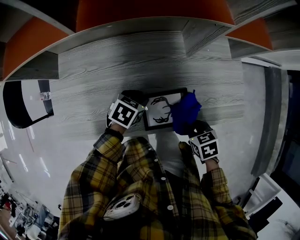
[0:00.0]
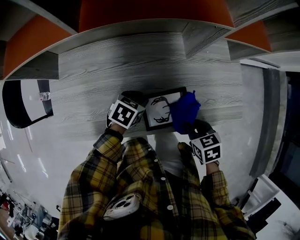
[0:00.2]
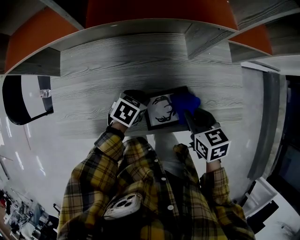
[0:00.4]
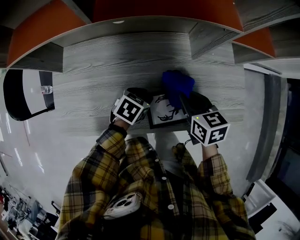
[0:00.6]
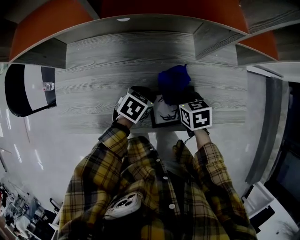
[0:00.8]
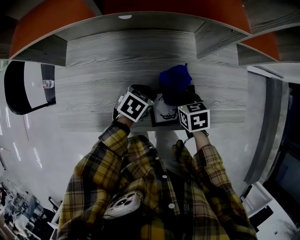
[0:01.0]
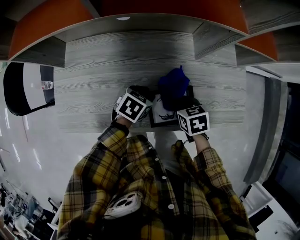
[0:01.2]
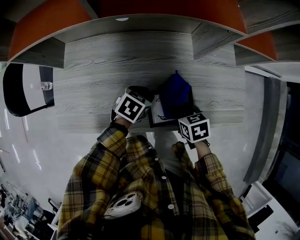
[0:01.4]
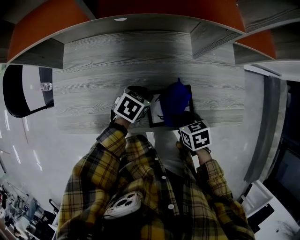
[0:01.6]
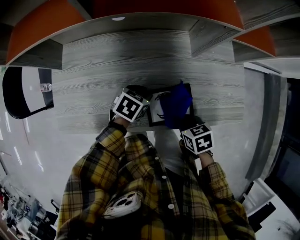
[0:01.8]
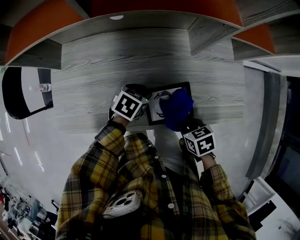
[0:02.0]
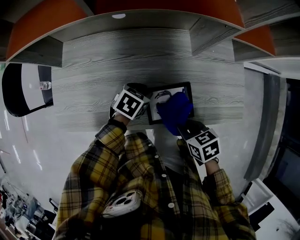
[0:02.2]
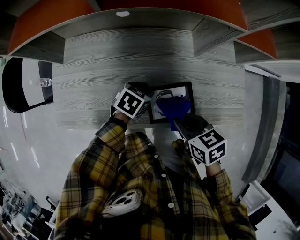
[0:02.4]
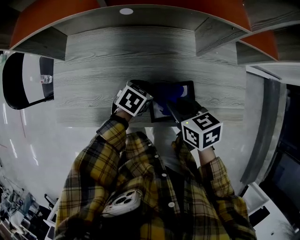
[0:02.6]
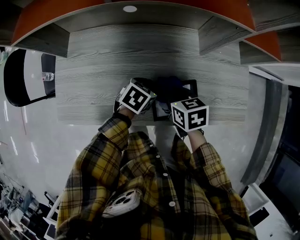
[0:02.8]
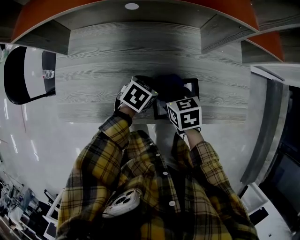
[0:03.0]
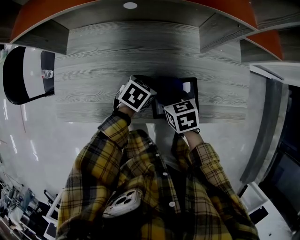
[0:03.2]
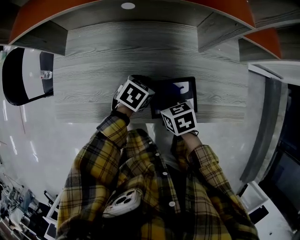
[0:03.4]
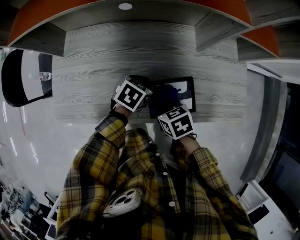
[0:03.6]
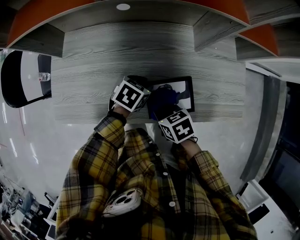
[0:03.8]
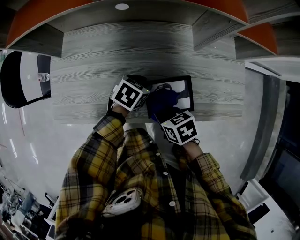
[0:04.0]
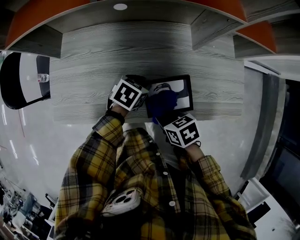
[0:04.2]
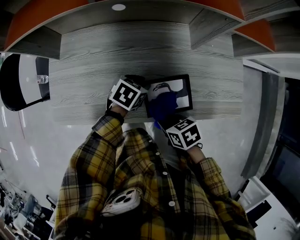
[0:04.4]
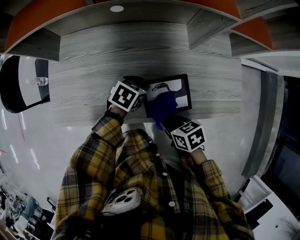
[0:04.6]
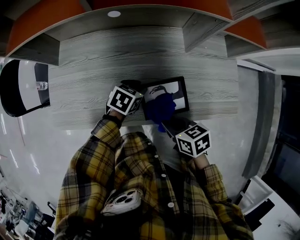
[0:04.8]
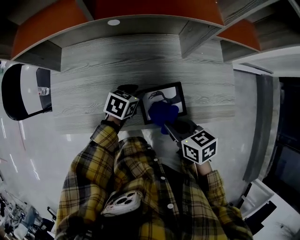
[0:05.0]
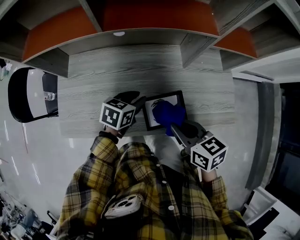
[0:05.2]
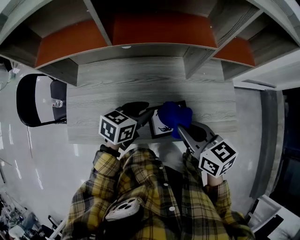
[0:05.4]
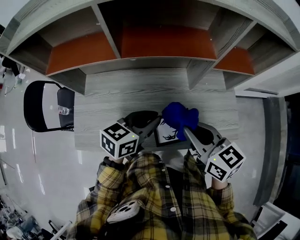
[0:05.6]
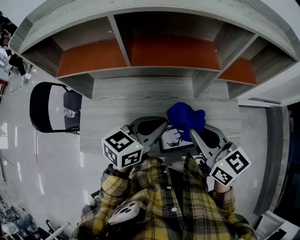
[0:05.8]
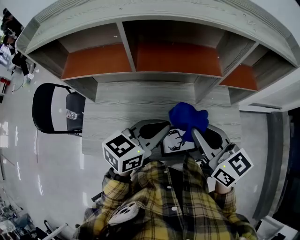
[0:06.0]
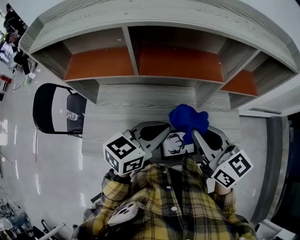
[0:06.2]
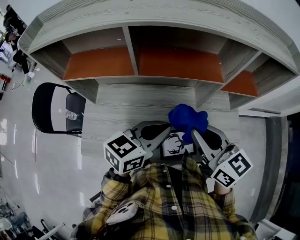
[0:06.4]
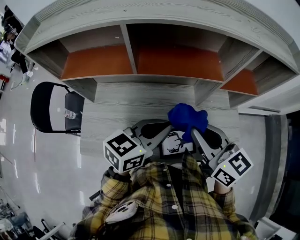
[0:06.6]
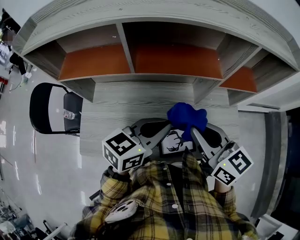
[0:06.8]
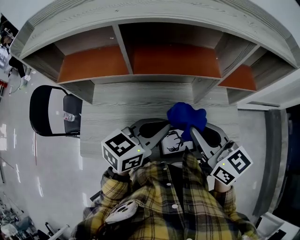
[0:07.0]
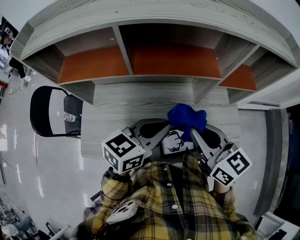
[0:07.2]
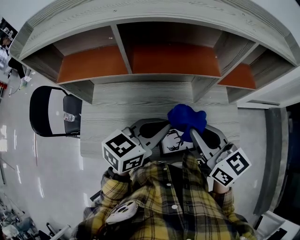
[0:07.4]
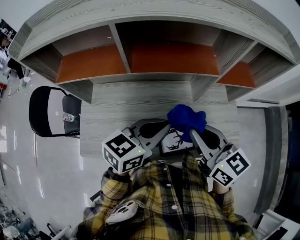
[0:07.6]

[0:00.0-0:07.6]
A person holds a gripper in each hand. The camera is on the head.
0:00.0 to 0:01.6: The right gripper heads to the left, covering some 5 cm, and moves some 10 cm forward and comes back.
0:01.6 to 0:03.0: The right gripper travels upward and back again, some 10 cm each way.
0:03.0 to 0:04.6: The right gripper changes place by roughly 15 cm, and changes its angle by approximately 20 degrees.
0:04.6 to 0:06.0: Both grippers move upward, approximately 30 cm. The right gripper tilts its fingers some 40 degrees upward, while the left gripper tips its fingers upward by some 40 degrees, and closes up.
0:06.0 to 0:07.6: The grippers make only small movements.

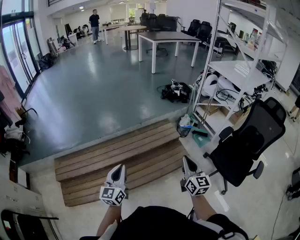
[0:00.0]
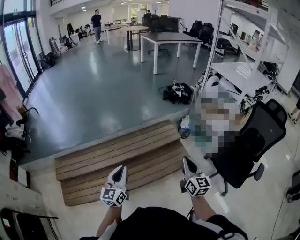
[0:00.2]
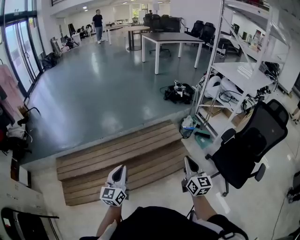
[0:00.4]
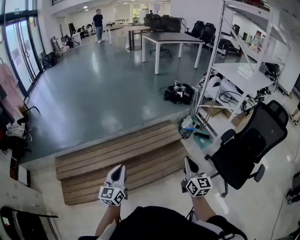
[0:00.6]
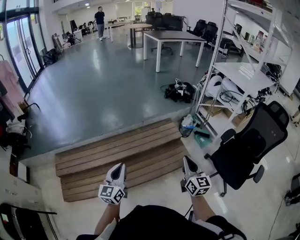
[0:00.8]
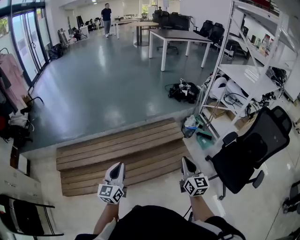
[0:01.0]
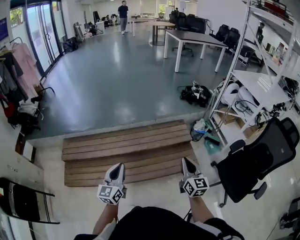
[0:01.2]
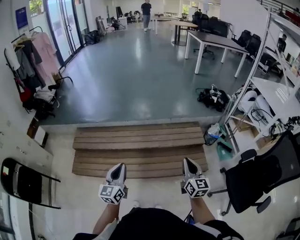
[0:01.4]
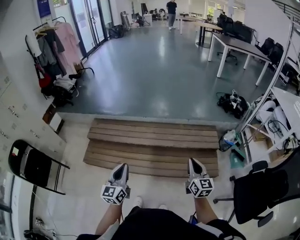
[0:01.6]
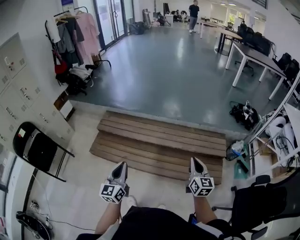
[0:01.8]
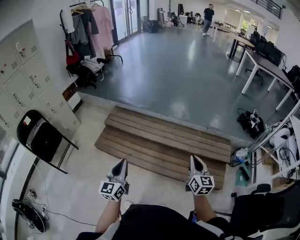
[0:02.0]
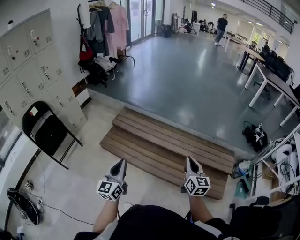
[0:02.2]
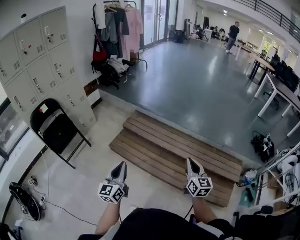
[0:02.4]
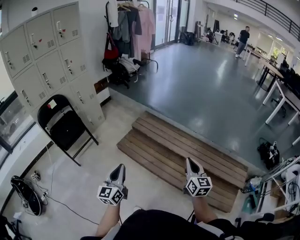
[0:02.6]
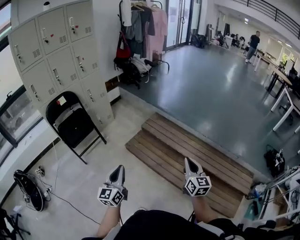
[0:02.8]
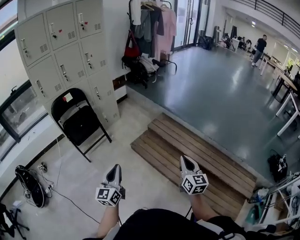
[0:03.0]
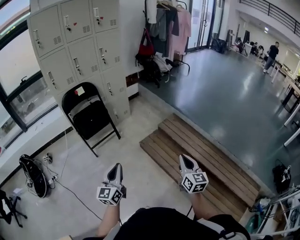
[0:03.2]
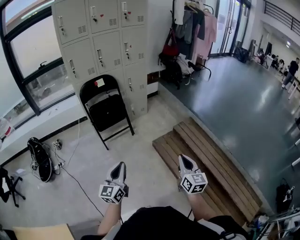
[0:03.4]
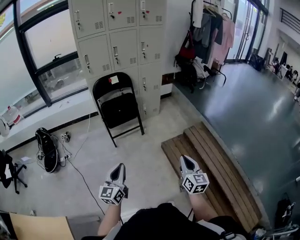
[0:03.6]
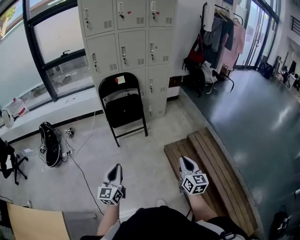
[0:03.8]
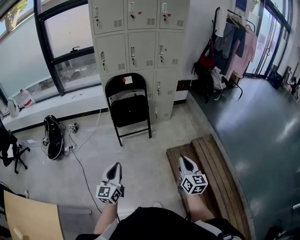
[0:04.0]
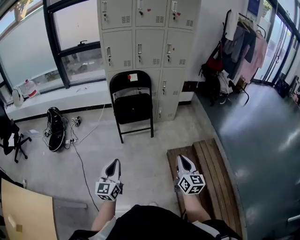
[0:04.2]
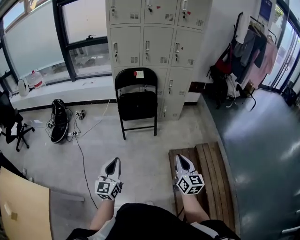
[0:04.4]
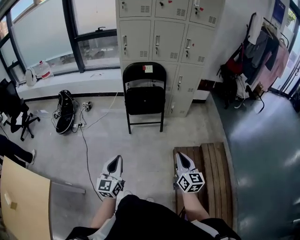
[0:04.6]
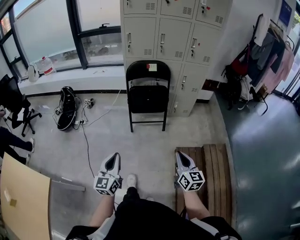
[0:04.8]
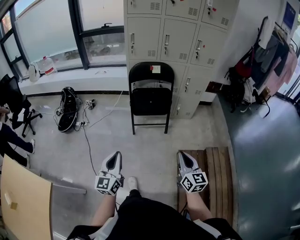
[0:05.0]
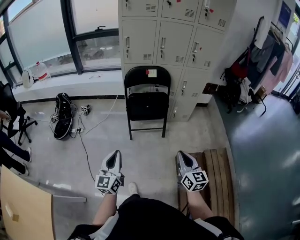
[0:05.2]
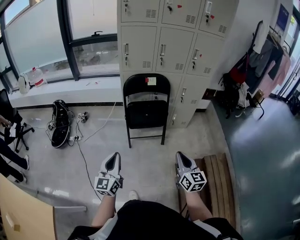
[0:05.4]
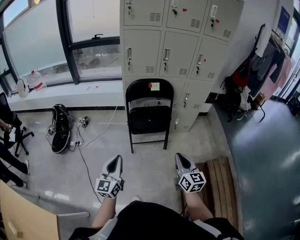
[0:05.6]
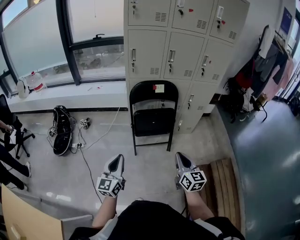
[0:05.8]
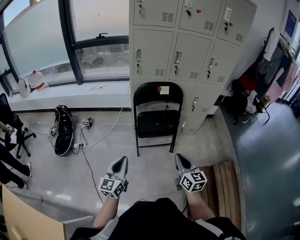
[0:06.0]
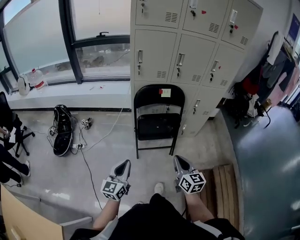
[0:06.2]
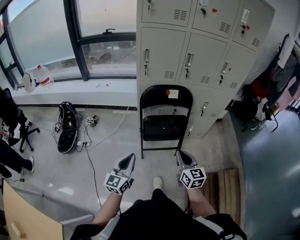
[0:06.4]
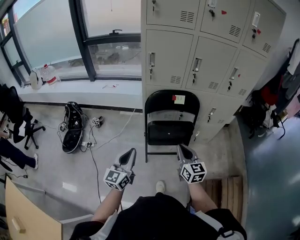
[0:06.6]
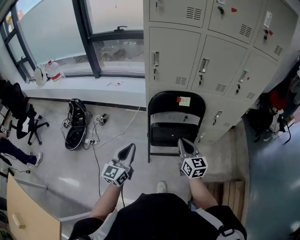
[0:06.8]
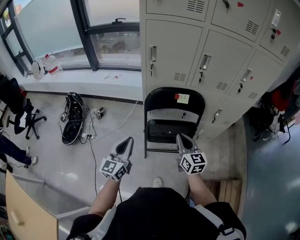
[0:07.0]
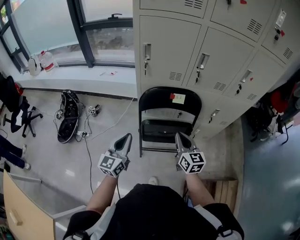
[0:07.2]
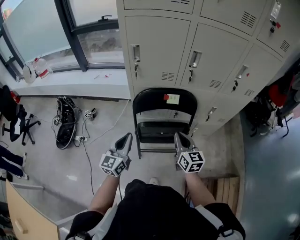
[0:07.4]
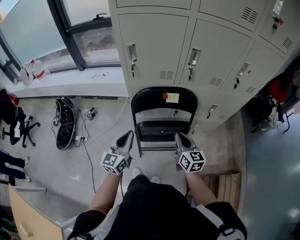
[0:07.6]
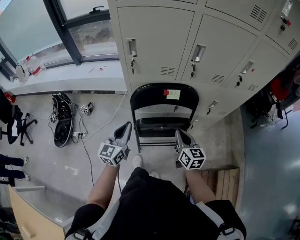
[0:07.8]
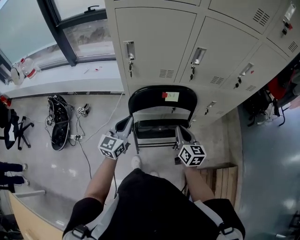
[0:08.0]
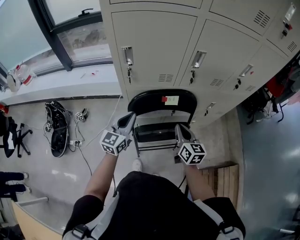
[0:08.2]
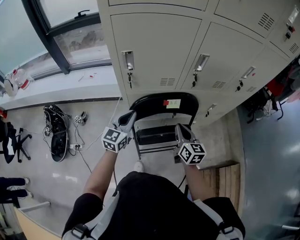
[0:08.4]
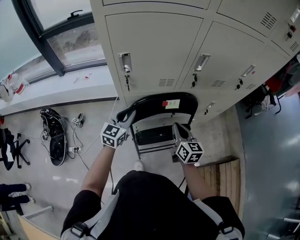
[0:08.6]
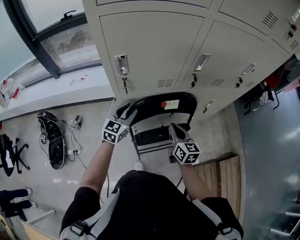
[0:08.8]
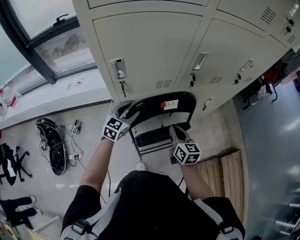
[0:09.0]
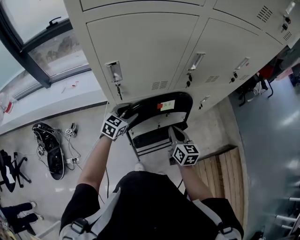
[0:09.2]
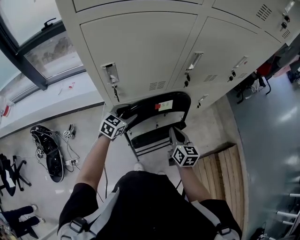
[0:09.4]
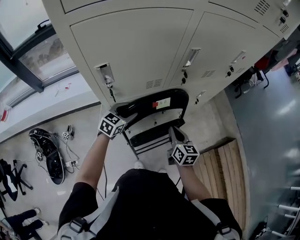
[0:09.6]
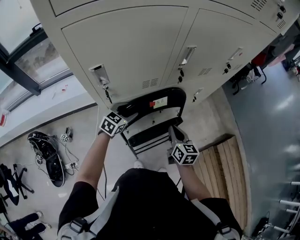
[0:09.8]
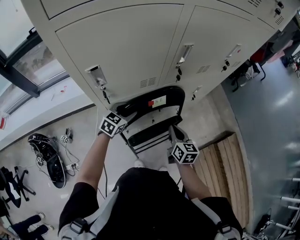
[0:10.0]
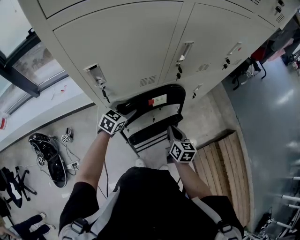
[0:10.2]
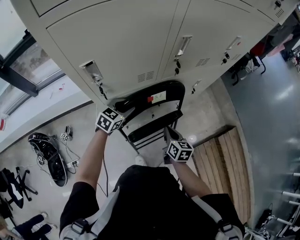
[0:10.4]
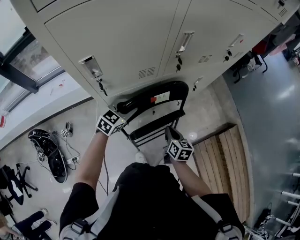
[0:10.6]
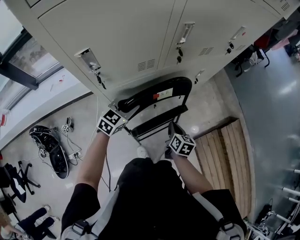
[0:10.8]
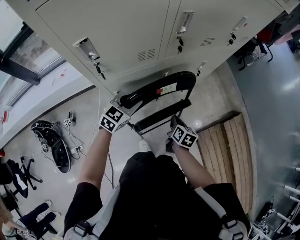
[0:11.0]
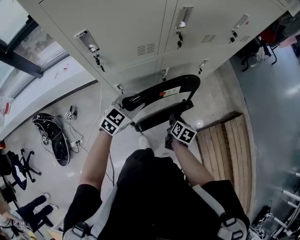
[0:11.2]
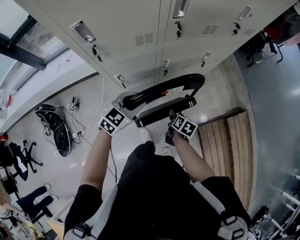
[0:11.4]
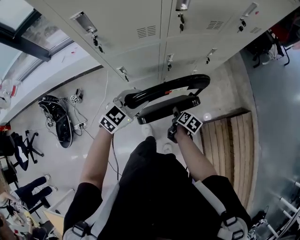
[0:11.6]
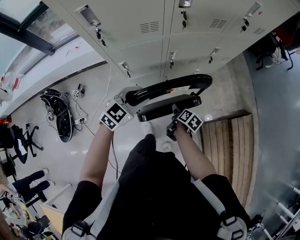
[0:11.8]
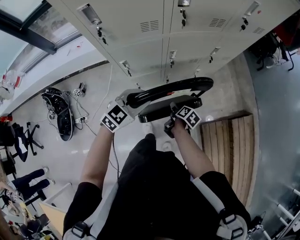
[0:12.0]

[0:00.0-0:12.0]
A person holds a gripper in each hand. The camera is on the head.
0:00.0 to 0:01.6: The right gripper ends up roughly 10 cm from where it was, and swivels approximately 30 degrees. The left gripper moves approximately 15 cm, and swivels roughly 30 degrees.
0:01.6 to 0:03.0: The two grippers travel together, approximately 50 cm. The left gripper turns by approximately 40 degrees. Meanwhile the right gripper rotates approximately 40 degrees.
0:03.0 to 0:04.4: The left gripper shifts by some 15 cm, and turns by approximately 40 degrees. Meanwhile the right gripper shifts by approximately 30 cm, and rotates about 40 degrees.
0:04.4 to 0:06.0: The two grippers go approximately 30 cm forward and to the left.
0:06.0 to 0:07.6: The two grippers go roughly 35 cm forward.
0:07.6 to 0:09.0: The right gripper goes some 10 cm forward and to the left; the left gripper travels forward by some 25 cm, turns by approximately 40 degrees, and opens up.
0:09.0 to 0:10.4: The right gripper goes approximately 10 cm downward. Meanwhile the left gripper shifts by roughly 5 cm, and changes its angle by about 20 degrees.
0:10.4 to 0:12.0: The left gripper travels backward and to the right by approximately 20 cm. Meanwhile the right gripper is displaced downward, to the right and backward by roughly 20 cm, changes its angle by approximately 40 degrees, and opens up.

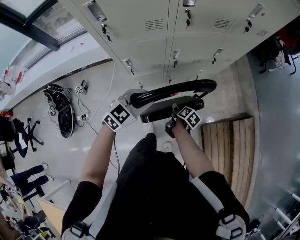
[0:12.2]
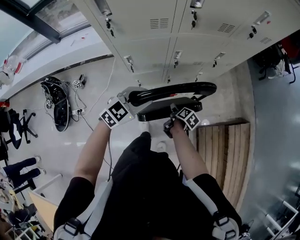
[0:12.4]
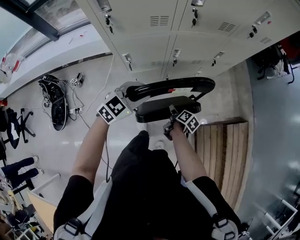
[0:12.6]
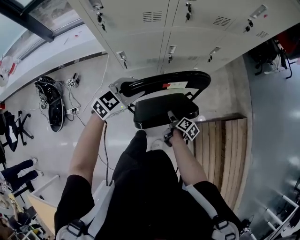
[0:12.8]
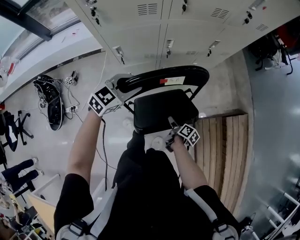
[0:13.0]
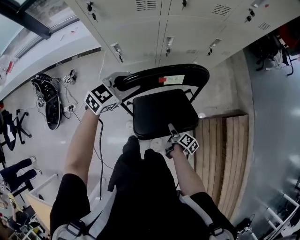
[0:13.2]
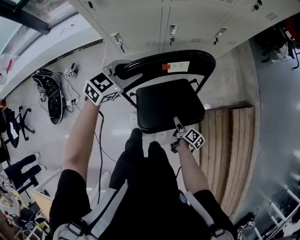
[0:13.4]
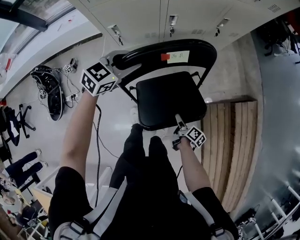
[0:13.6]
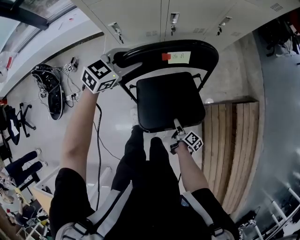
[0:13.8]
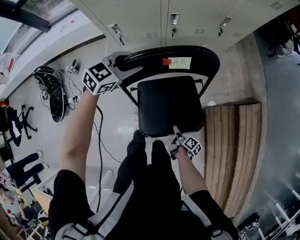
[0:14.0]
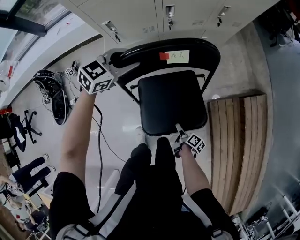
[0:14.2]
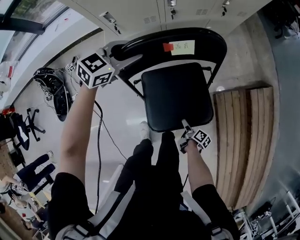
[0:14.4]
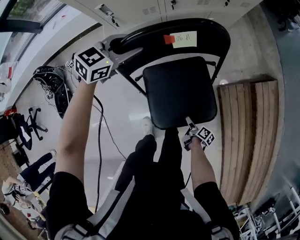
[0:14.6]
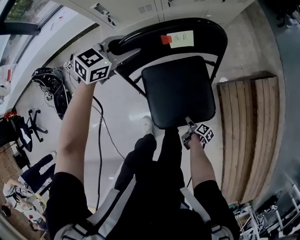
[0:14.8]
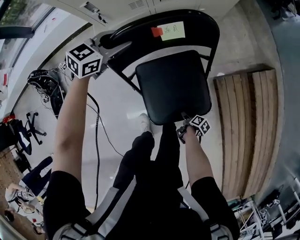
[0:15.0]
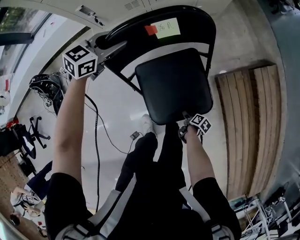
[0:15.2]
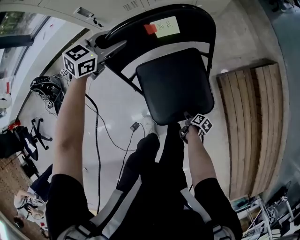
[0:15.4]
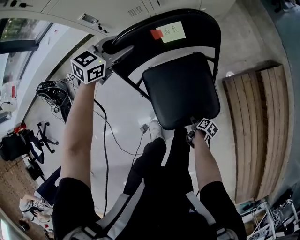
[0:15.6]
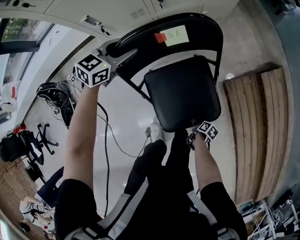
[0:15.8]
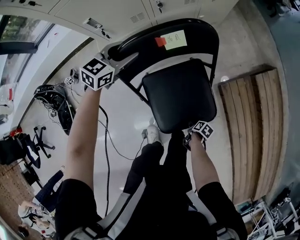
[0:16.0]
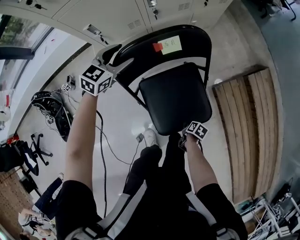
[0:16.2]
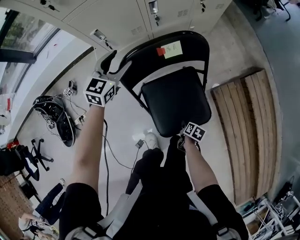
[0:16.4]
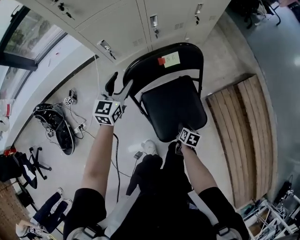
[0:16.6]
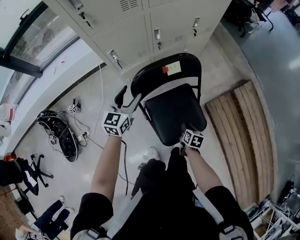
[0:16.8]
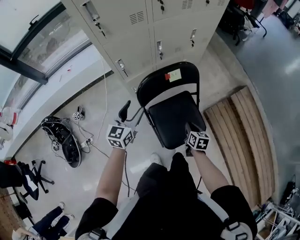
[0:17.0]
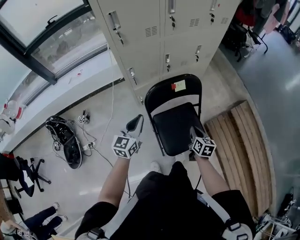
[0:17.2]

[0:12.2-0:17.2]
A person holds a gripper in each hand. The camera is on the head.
0:12.2 to 0:13.8: The left gripper is displaced downward by approximately 5 cm, while the right gripper moves backward, downward and to the right, some 25 cm, and changes its angle by roughly 20 degrees.
0:13.8 to 0:15.6: The left gripper heads downward, covering roughly 10 cm, while the right gripper heads downward and backward, covering about 20 cm, and turns by approximately 30 degrees.
0:15.6 to 0:17.2: The left gripper shifts by roughly 30 cm, changes its angle by approximately 30 degrees, and closes its fingers, while the right gripper travels upward by about 40 cm, points its fingers roughly 30 degrees further upward, and closes up.
